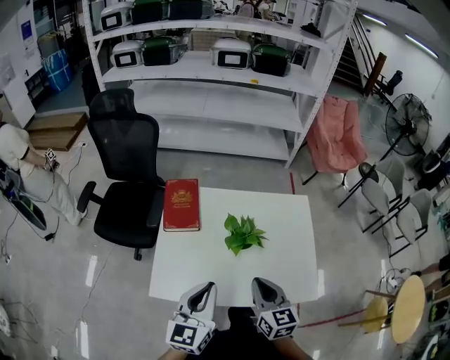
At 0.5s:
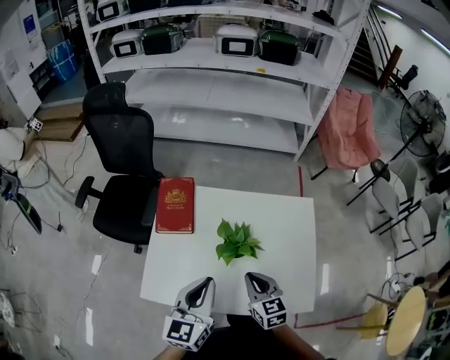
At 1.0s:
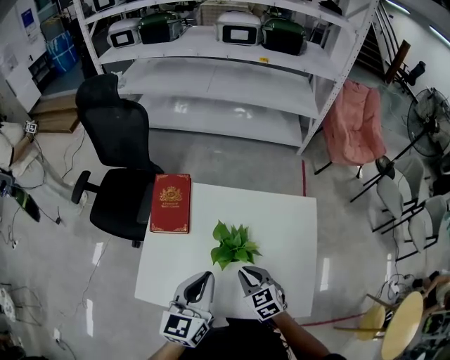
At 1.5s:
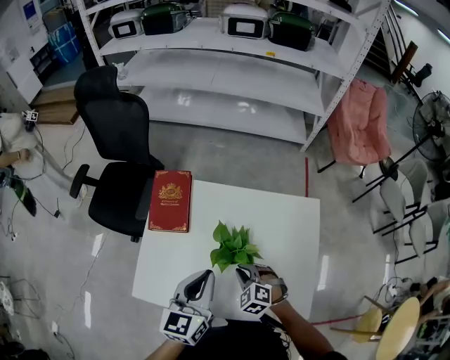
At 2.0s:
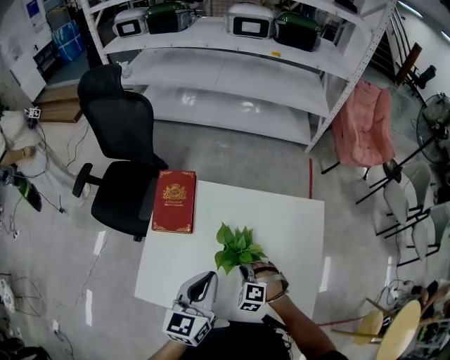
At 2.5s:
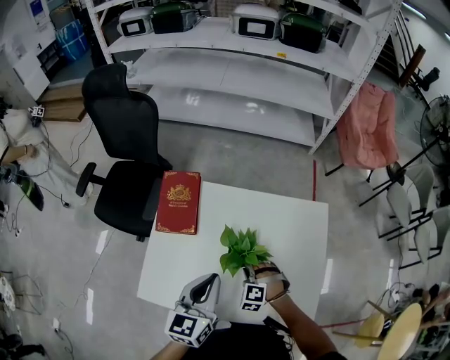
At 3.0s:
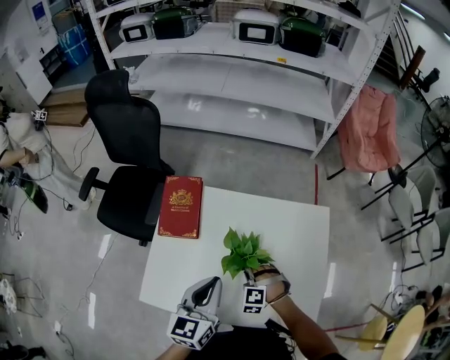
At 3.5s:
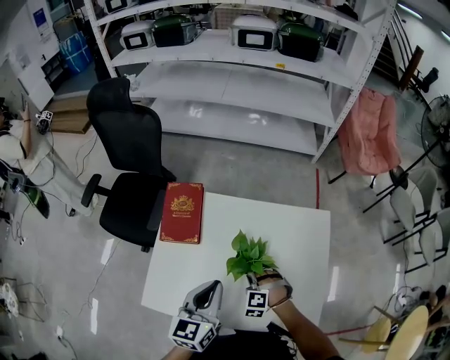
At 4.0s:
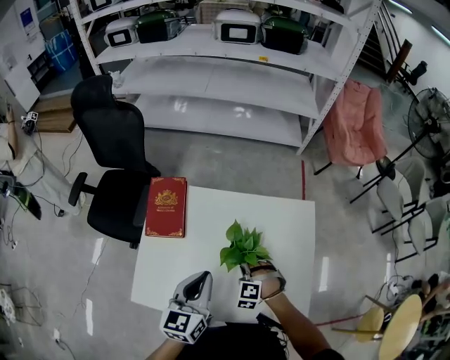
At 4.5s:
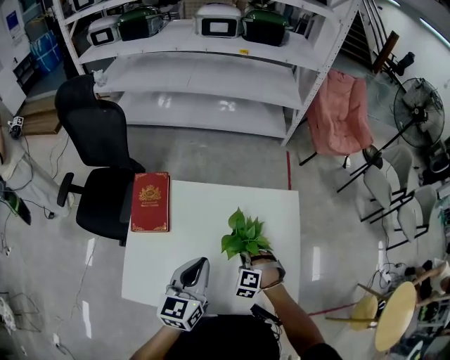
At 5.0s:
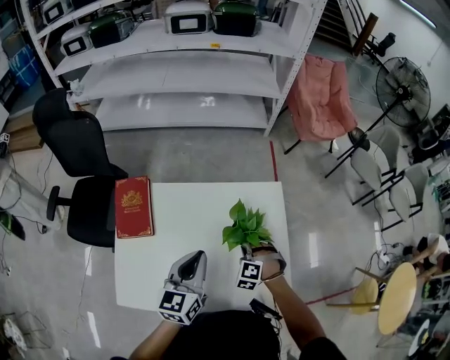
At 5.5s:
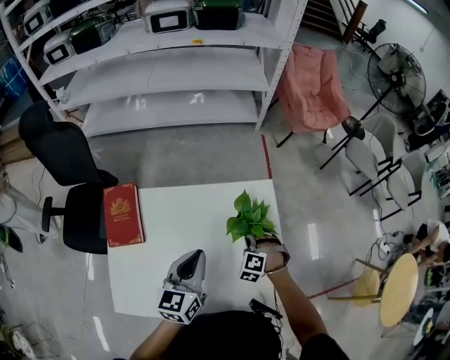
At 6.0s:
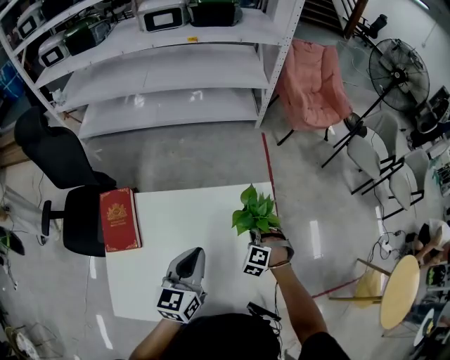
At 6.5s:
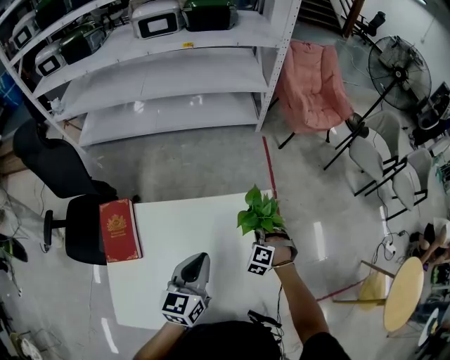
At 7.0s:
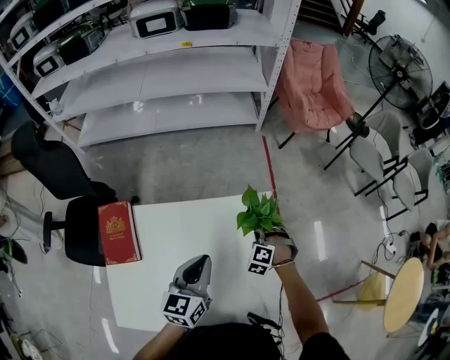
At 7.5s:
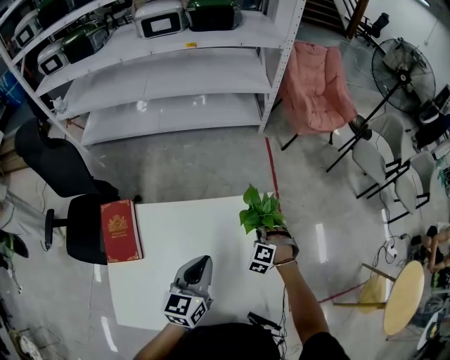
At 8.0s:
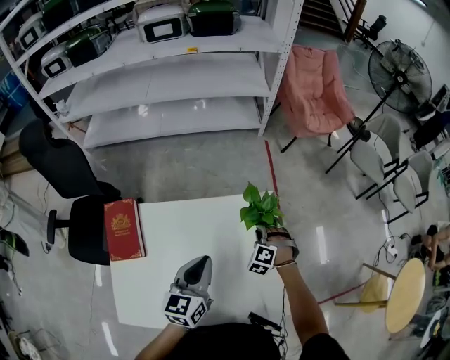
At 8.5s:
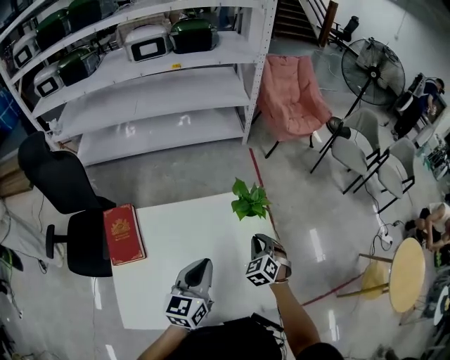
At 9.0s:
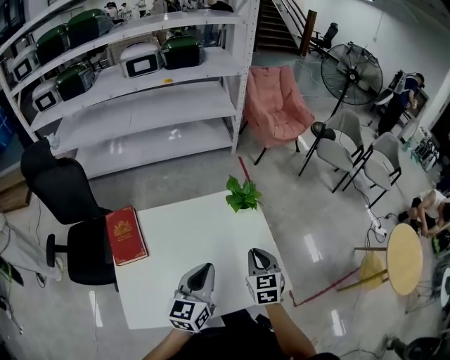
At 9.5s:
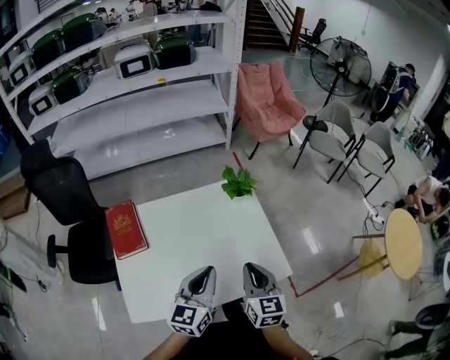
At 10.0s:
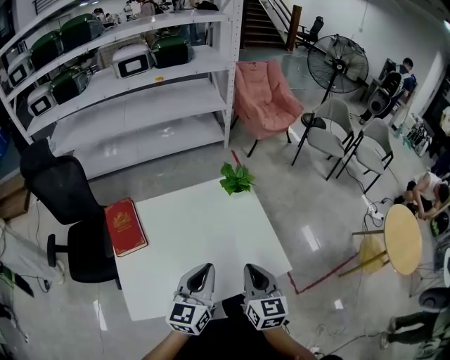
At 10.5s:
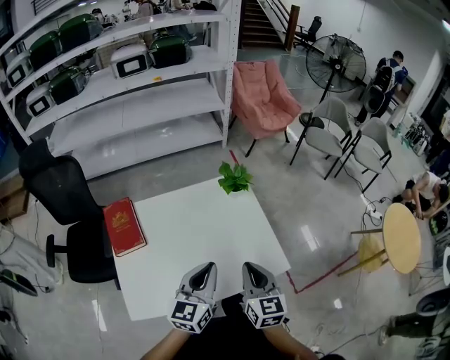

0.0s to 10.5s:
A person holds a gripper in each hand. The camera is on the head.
0.0s to 2.0s: The right gripper shifts about 25 cm downward and forward, and rotates around the line of its fingers by approximately 70 degrees, counterclockwise from behind; the left gripper is displaced forward and to the right by some 15 cm.
2.0s to 4.0s: The grippers stay close to where they were, moving slightly.
4.0s to 6.5s: The two grippers go some 25 cm forward and to the right. The right gripper changes its angle by about 20 degrees.
6.5s to 8.5s: The left gripper is displaced backward by approximately 10 cm. The right gripper shifts approximately 15 cm upward and backward, and rotates about 40 degrees.
8.5s to 10.5s: The left gripper shifts some 15 cm backward; the right gripper moves backward and upward, approximately 30 cm, and rotates around the line of its fingers by about 50 degrees, clockwise from behind.

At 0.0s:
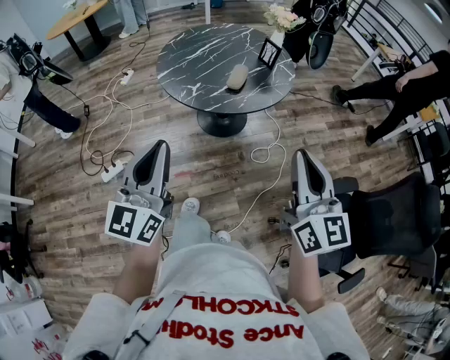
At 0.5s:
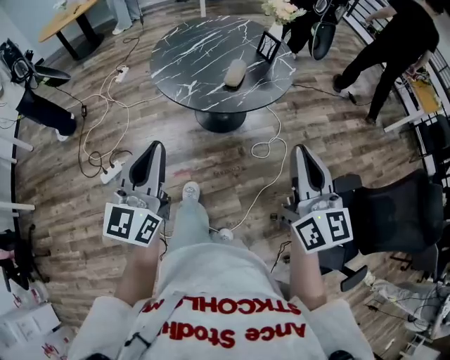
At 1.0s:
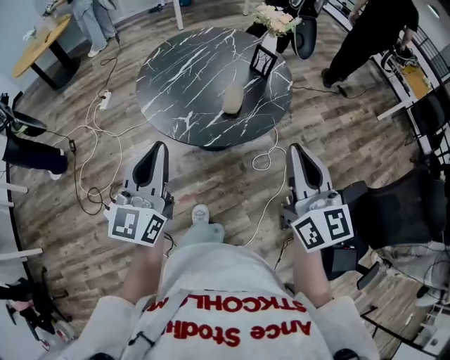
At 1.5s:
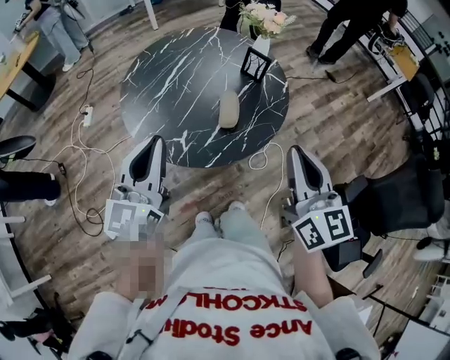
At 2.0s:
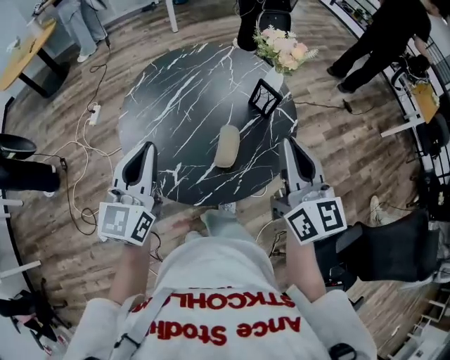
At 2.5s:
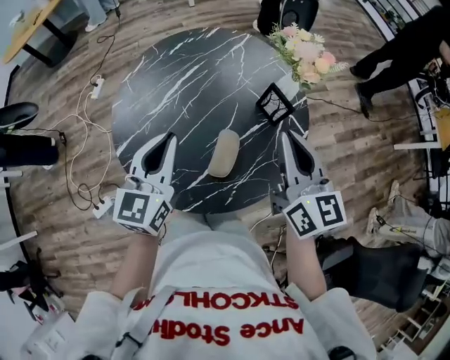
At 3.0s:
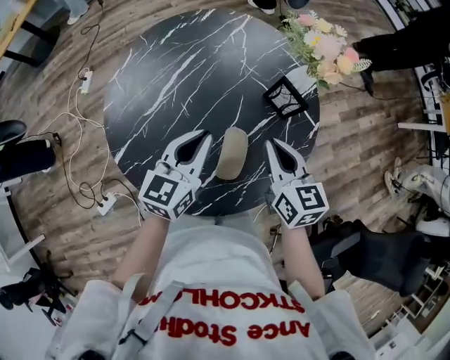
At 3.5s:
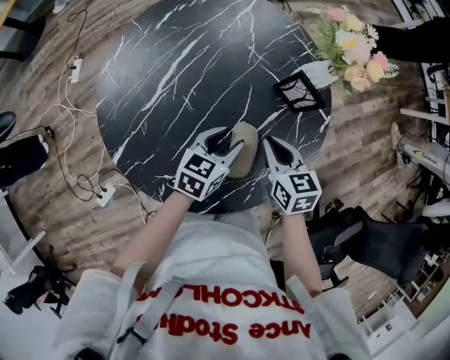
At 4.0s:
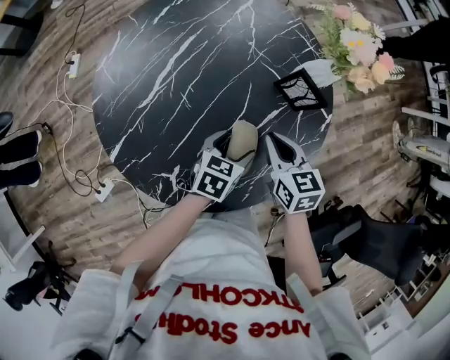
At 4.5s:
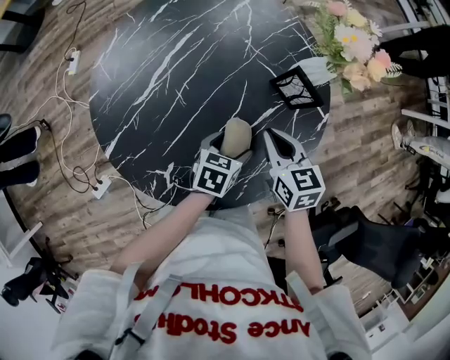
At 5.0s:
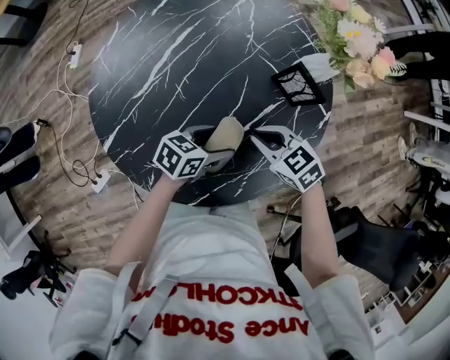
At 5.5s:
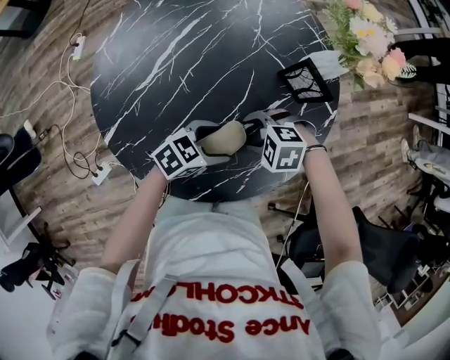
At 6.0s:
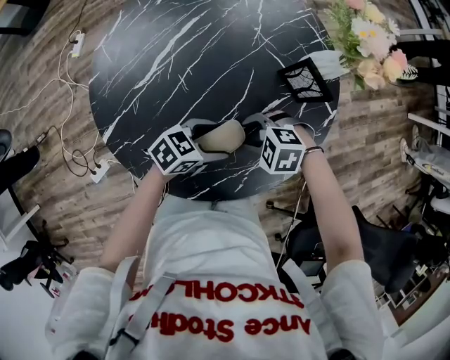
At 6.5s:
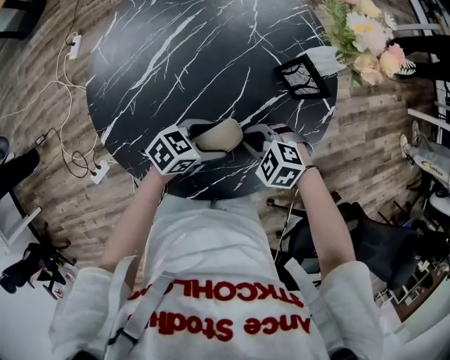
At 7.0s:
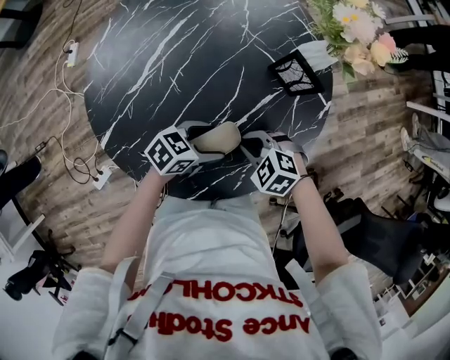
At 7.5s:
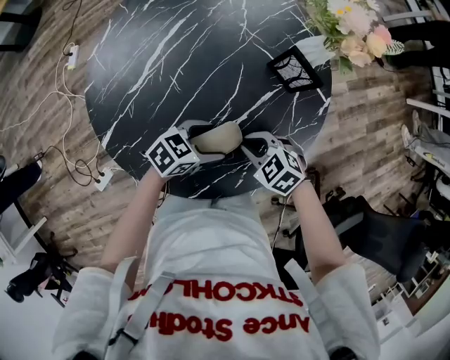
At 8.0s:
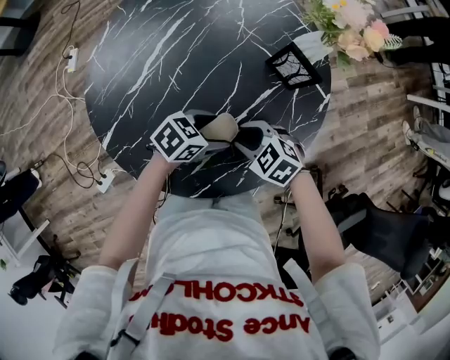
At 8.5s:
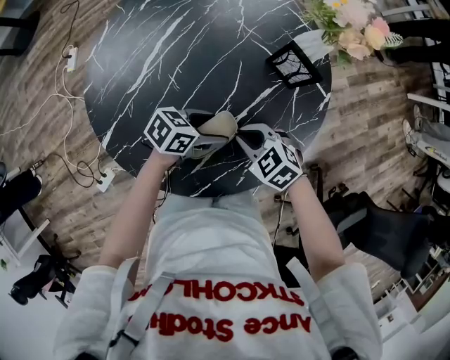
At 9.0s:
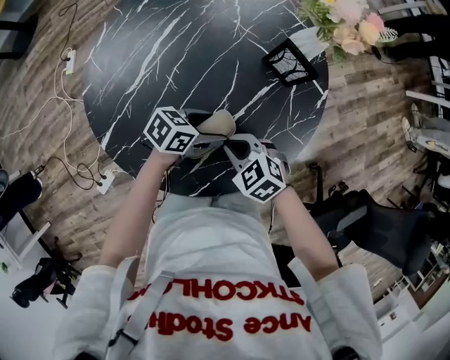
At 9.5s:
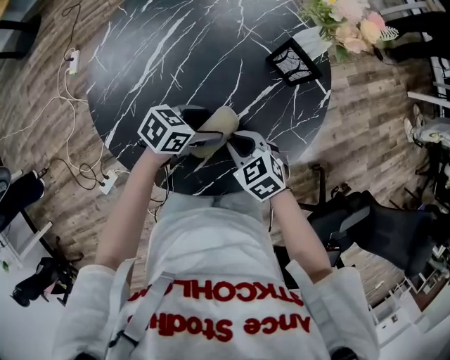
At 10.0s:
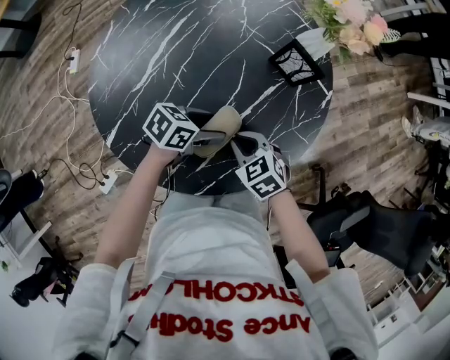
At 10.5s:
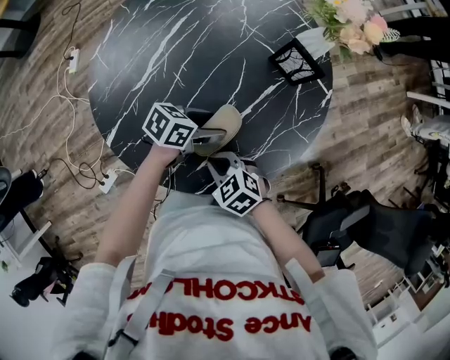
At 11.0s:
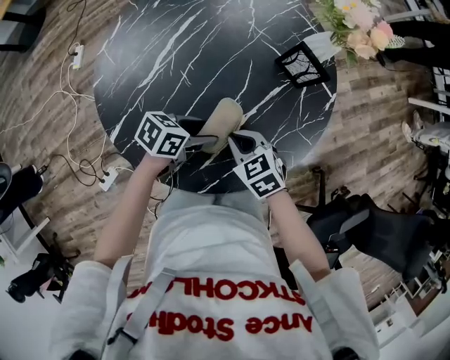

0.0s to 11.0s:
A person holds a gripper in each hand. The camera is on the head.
0.0s to 2.0s: Both grippers are carried forward, roughly 50 cm.
2.0s to 3.5s: The left gripper goes some 35 cm downward, forward and to the right, angles its fingers downward, by about 30 degrees, and opens its fingers; the right gripper goes roughly 35 cm downward and forward, and tips its fingers downward by about 40 degrees.
3.5s to 5.5s: The left gripper moves some 10 cm, rotates about 30 degrees, and opens its fingers, while the right gripper is displaced downward by about 10 cm, rotates about 90 degrees, and opens its fingers.
5.5s to 7.5s: The right gripper rotates approximately 30 degrees, and closes.
7.5s to 9.0s: The right gripper opens and closes again.
9.0s to 11.0s: The left gripper changes place by some 5 cm.

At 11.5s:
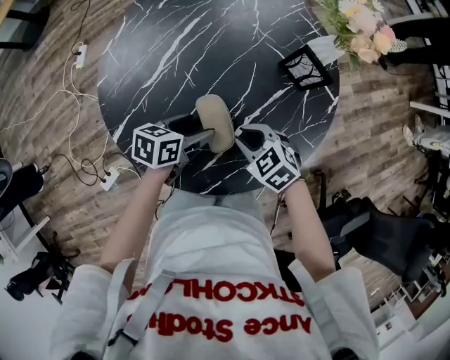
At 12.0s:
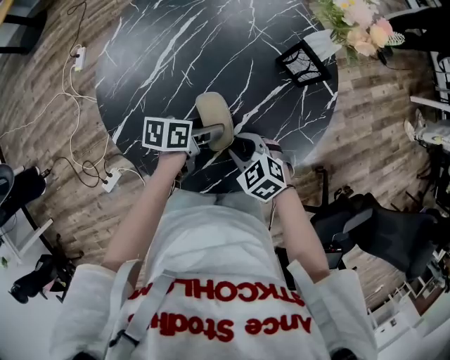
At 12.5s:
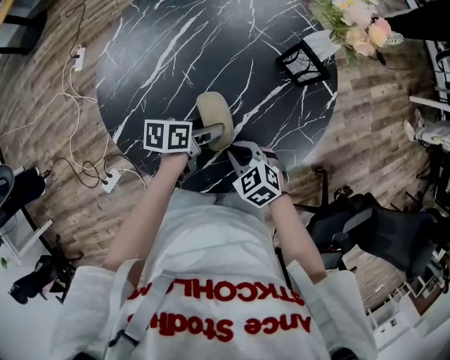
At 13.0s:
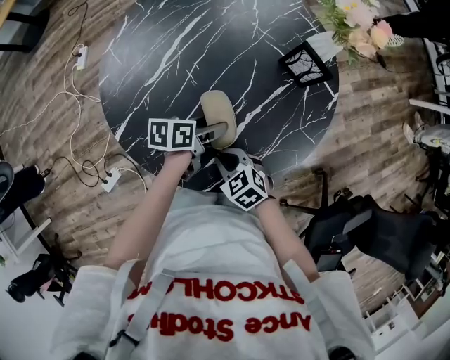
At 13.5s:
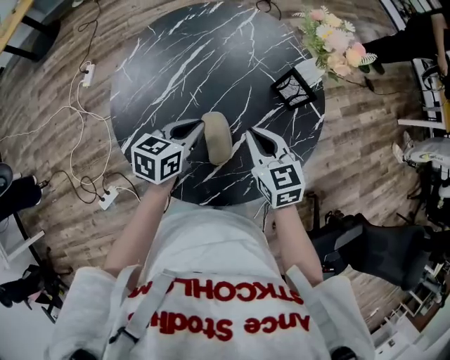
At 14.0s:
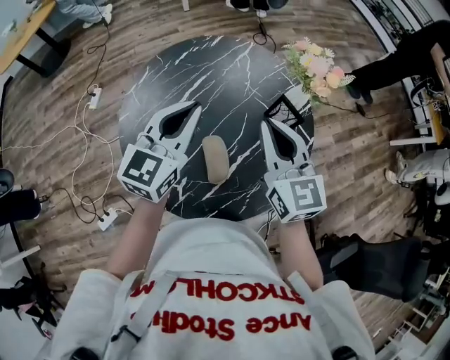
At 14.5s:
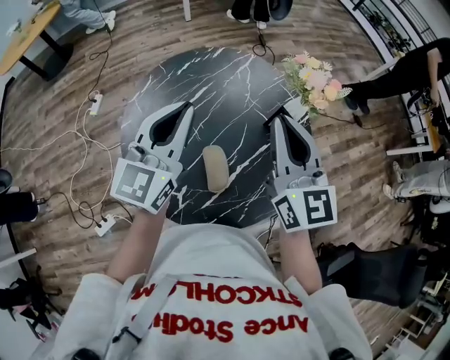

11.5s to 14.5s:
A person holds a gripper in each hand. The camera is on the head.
11.5s to 13.0s: The right gripper ends up some 10 cm from where it was.
13.0s to 14.5s: The grippers both shift upward by some 40 cm. The left gripper tilts its fingers about 40 degrees upward, and closes its fingers; the right gripper tilts its fingers about 50 degrees upward.

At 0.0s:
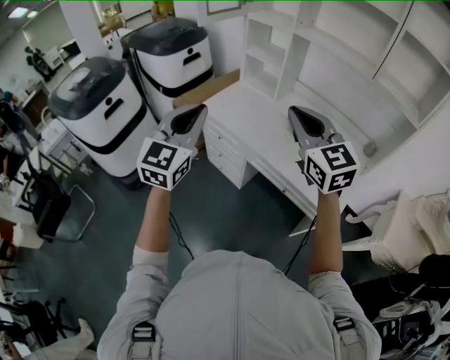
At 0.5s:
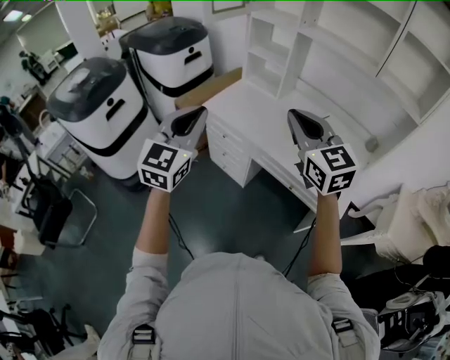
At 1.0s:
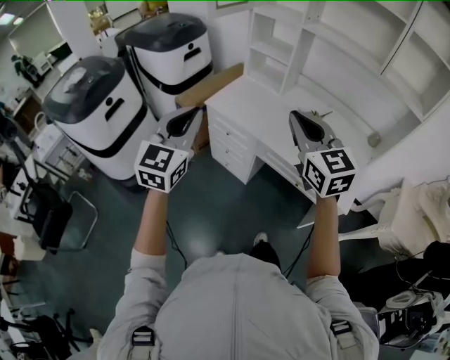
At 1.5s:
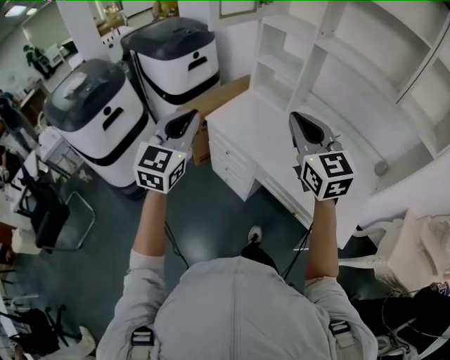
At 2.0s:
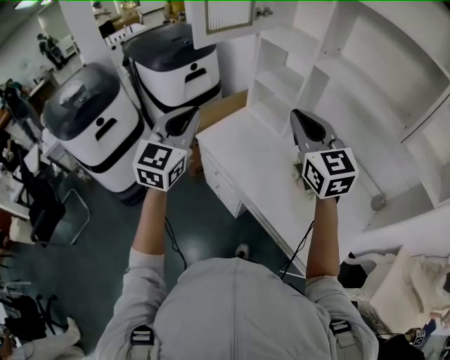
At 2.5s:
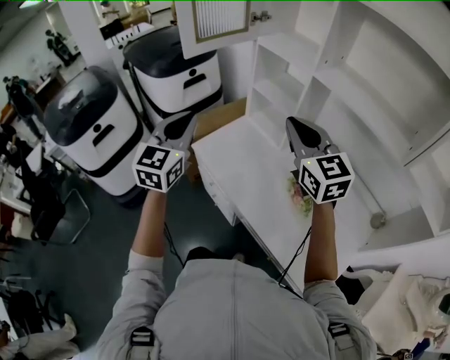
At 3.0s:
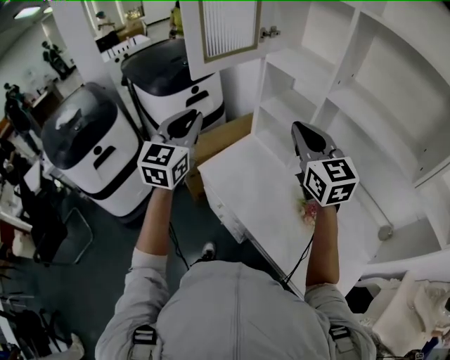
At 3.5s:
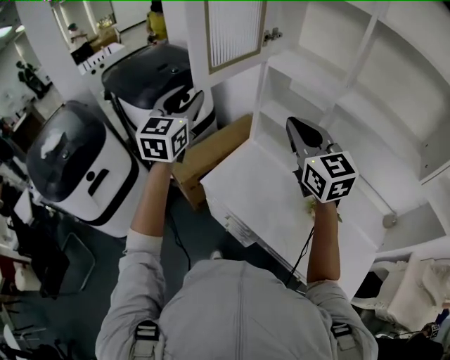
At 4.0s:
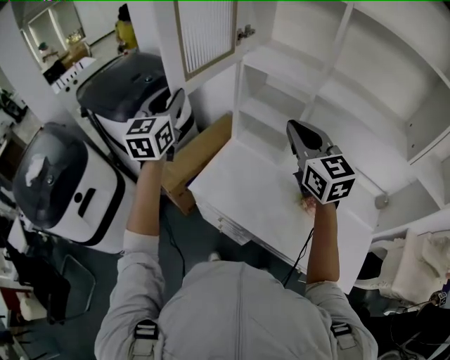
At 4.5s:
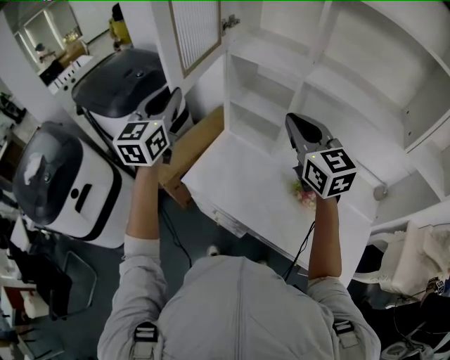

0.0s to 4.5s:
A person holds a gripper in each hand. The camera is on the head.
0.0s to 2.0s: The grippers both shift forward by roughly 25 cm.
2.0s to 4.5s: The right gripper is displaced forward by roughly 15 cm; the left gripper travels forward by roughly 25 cm.
